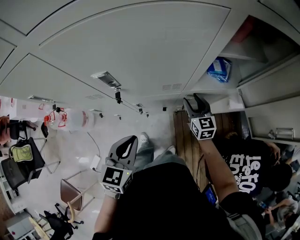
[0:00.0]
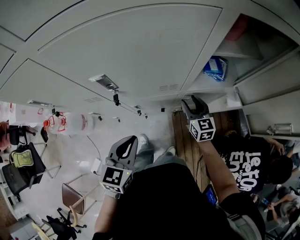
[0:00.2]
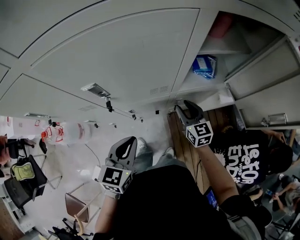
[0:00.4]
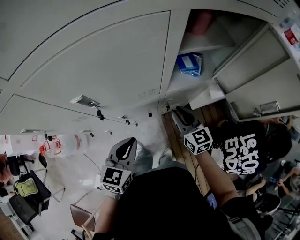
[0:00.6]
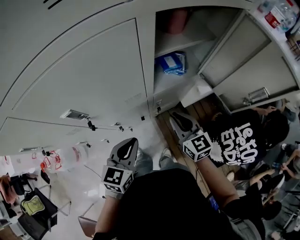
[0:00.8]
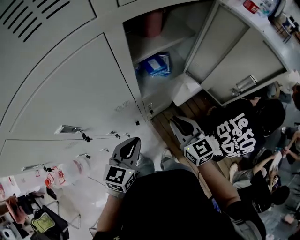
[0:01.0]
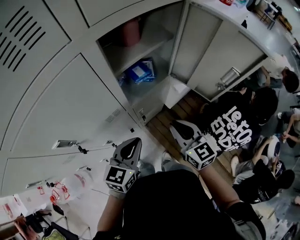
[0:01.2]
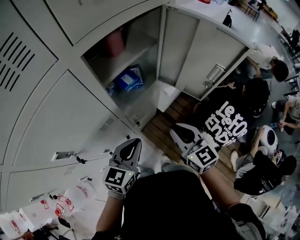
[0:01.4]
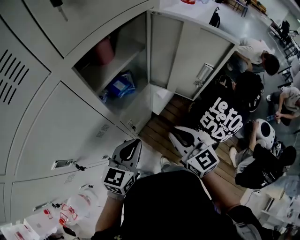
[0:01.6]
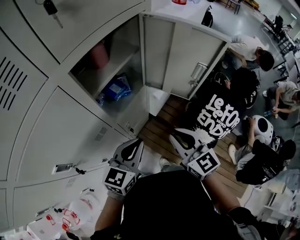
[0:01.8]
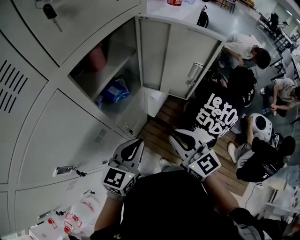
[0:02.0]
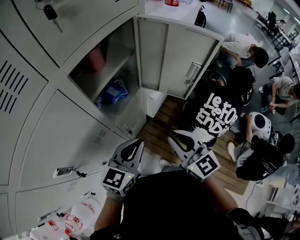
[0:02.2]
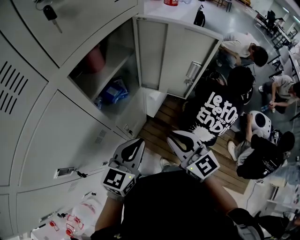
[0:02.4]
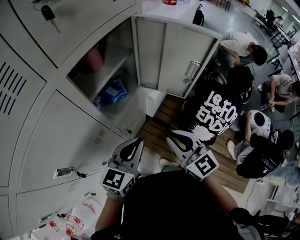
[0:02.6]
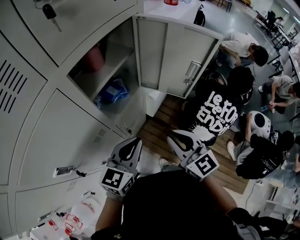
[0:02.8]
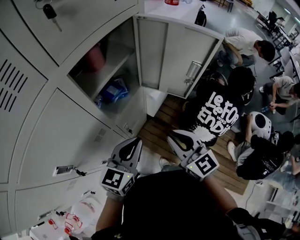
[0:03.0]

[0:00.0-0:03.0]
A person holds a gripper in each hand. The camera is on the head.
0:00.0 to 0:01.6: The right gripper moves about 30 cm, changes its angle by roughly 30 degrees, and closes. Meanwhile the left gripper ends up about 20 cm from where it was, and rotates roughly 50 degrees.
0:01.6 to 0:03.0: The grippers move only a little.

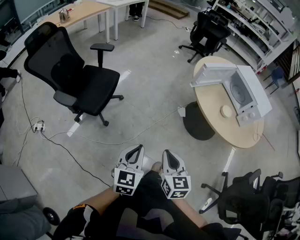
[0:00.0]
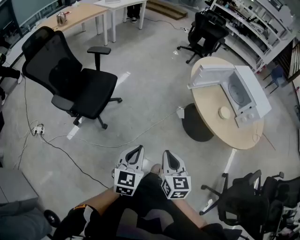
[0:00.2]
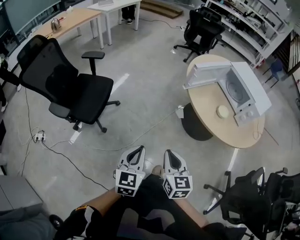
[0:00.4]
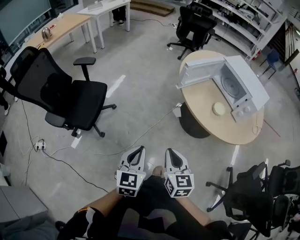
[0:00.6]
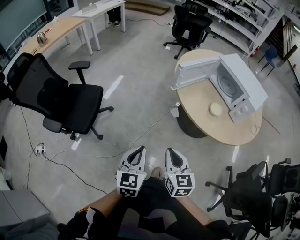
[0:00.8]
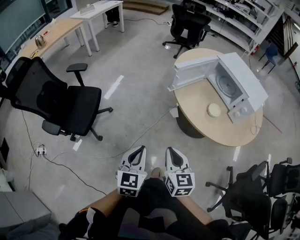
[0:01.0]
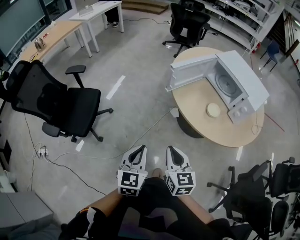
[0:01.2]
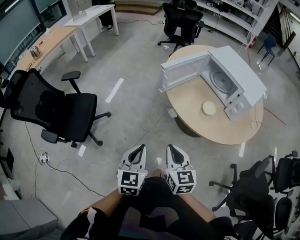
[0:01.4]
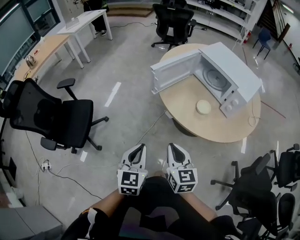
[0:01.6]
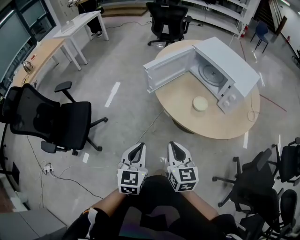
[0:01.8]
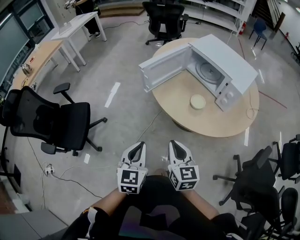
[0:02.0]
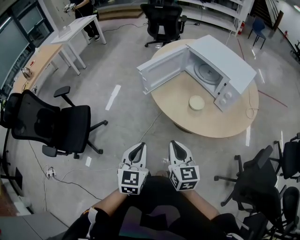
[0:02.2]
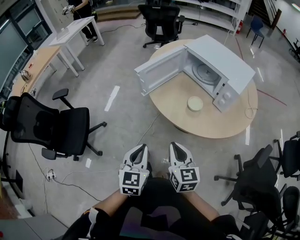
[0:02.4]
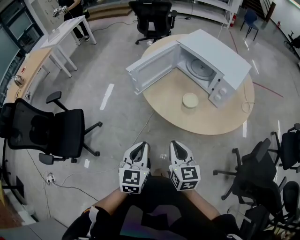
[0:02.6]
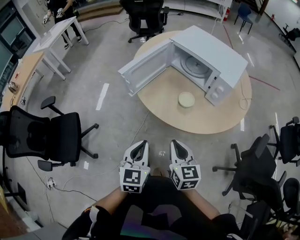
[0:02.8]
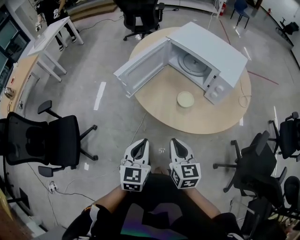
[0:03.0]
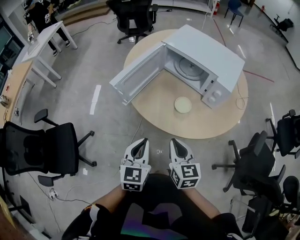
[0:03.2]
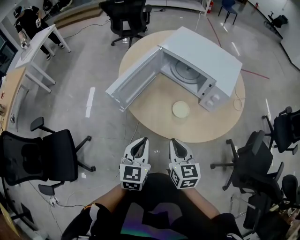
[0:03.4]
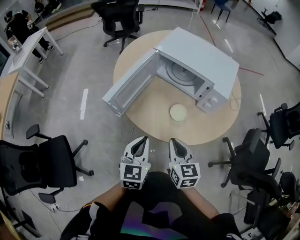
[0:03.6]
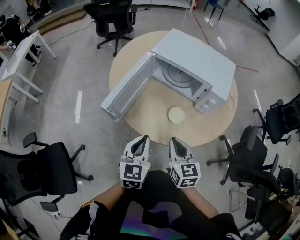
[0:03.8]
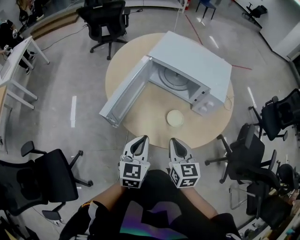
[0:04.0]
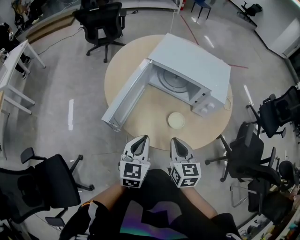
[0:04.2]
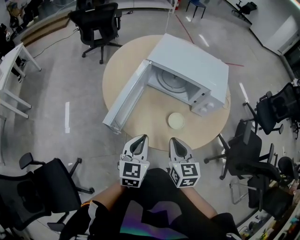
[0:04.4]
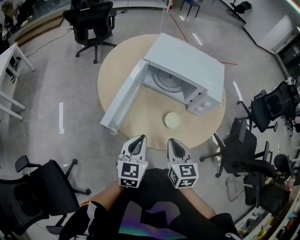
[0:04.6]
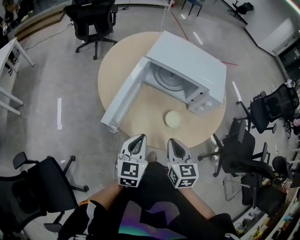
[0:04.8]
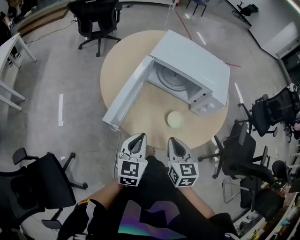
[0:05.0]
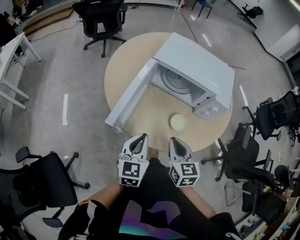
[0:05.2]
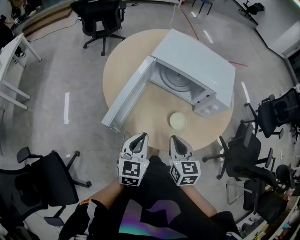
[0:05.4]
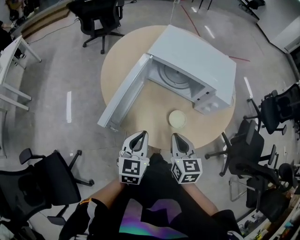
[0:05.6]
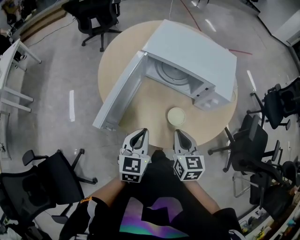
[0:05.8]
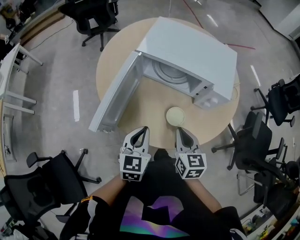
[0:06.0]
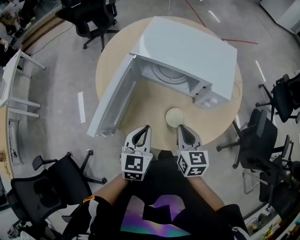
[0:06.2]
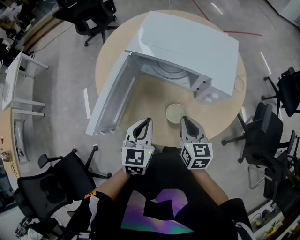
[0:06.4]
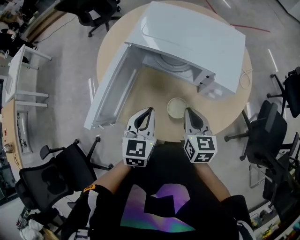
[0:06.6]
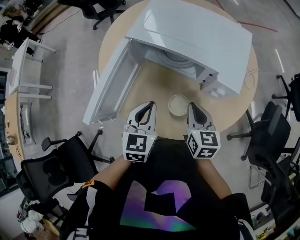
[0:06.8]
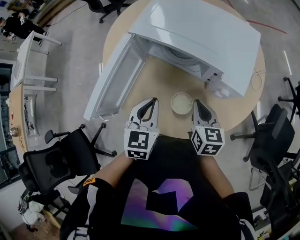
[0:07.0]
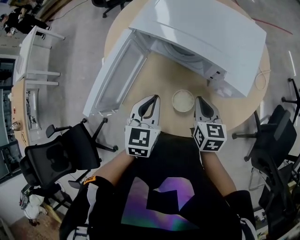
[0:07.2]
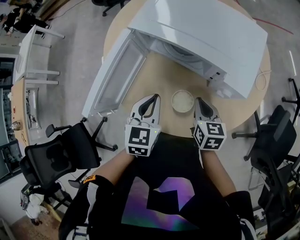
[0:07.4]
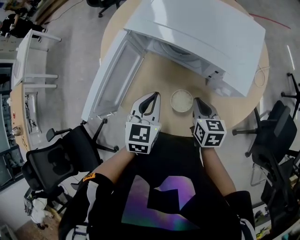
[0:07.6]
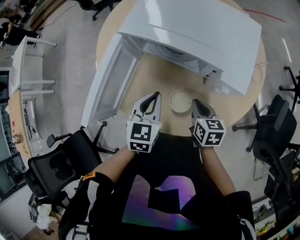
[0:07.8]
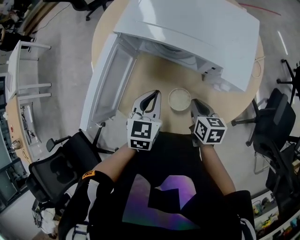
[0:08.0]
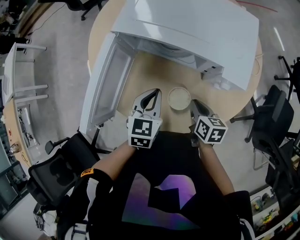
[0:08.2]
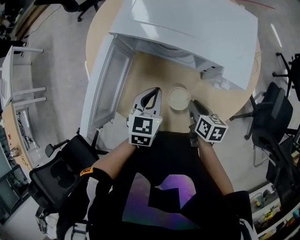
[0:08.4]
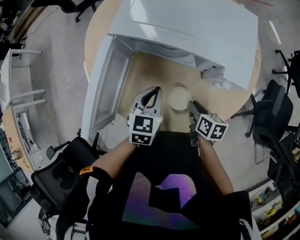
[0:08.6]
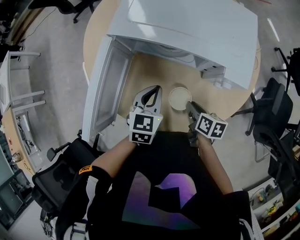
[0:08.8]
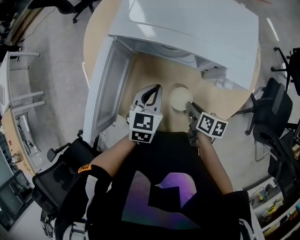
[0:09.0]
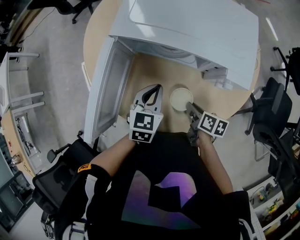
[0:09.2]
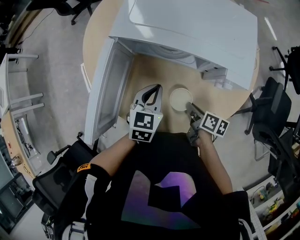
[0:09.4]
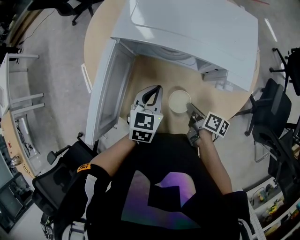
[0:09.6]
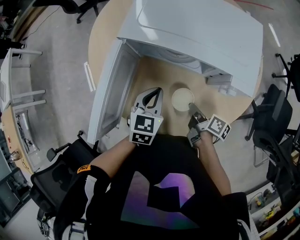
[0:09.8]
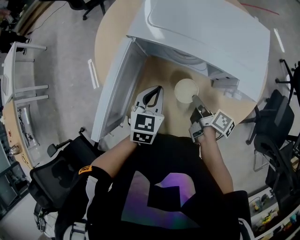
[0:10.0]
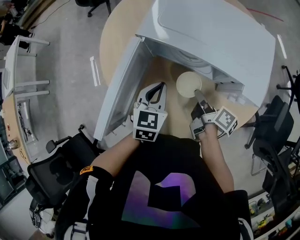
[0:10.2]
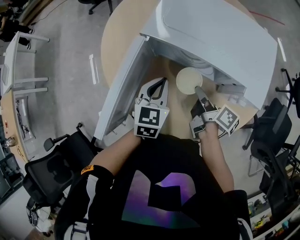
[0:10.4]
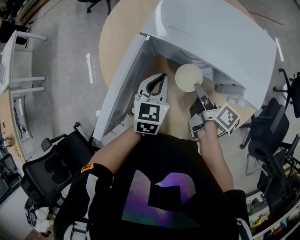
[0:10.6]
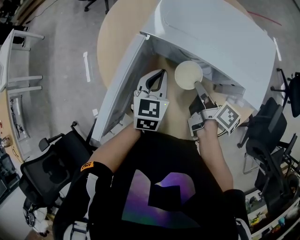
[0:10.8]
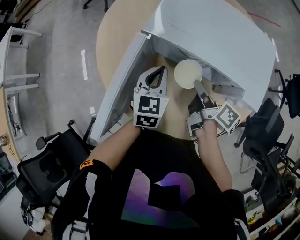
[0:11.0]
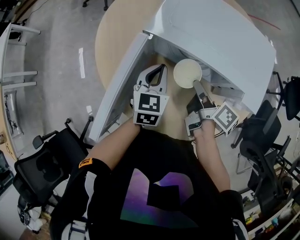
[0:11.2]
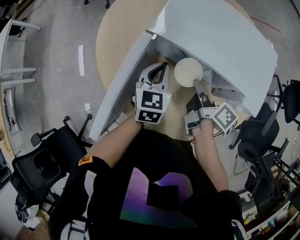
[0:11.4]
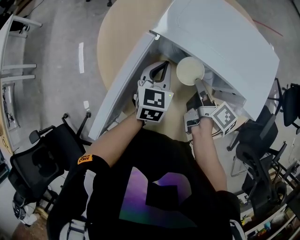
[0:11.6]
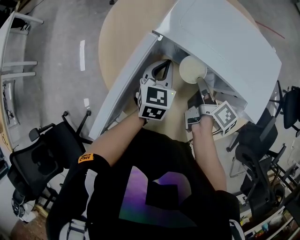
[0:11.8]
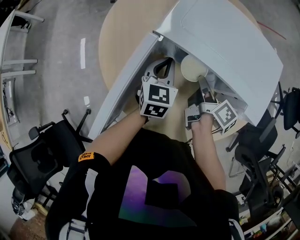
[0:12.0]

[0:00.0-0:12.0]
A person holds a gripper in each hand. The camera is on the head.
0:00.0 to 0:01.6: Both grippers travel together to the right and forward, roughly 30 cm.
0:01.6 to 0:03.0: Both grippers travel together to the right and forward, roughly 15 cm.
0:03.0 to 0:04.4: Both grippers travel together forward, roughly 15 cm. The right gripper changes its angle by some 20 degrees; the left gripper turns by about 20 degrees.
0:04.4 to 0:06.0: The right gripper shifts about 10 cm forward and to the right, while the left gripper heads forward, covering about 5 cm.
0:06.0 to 0:07.6: The right gripper shifts some 15 cm downward, forward and to the right. The left gripper moves forward and to the right, some 10 cm.
0:07.6 to 0:09.0: The right gripper heads downward, covering some 5 cm, and changes its angle by some 40 degrees; the left gripper shifts by about 5 cm.
0:09.0 to 0:10.4: The left gripper changes place by approximately 5 cm, while the right gripper moves forward and upward, approximately 15 cm, and rotates some 30 degrees.
0:10.4 to 0:12.0: The grippers both shift forward by approximately 10 cm.

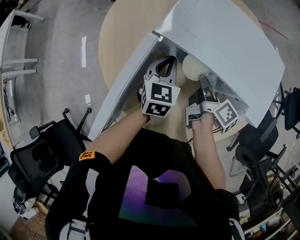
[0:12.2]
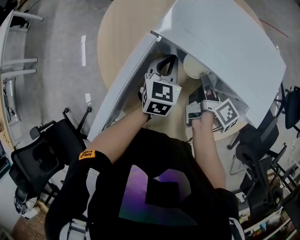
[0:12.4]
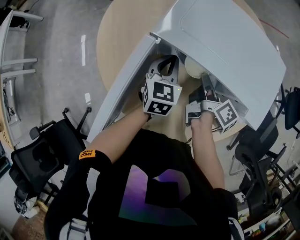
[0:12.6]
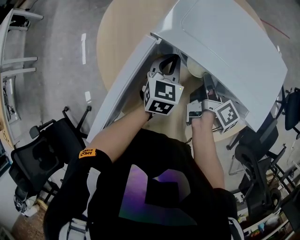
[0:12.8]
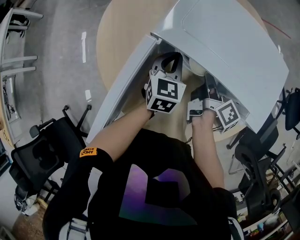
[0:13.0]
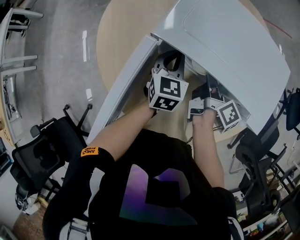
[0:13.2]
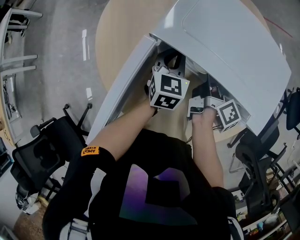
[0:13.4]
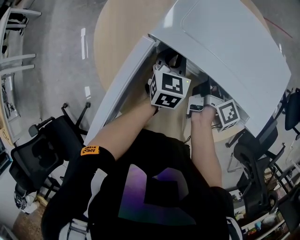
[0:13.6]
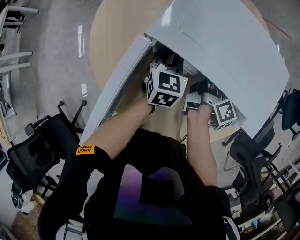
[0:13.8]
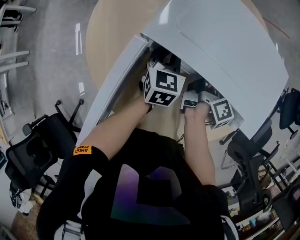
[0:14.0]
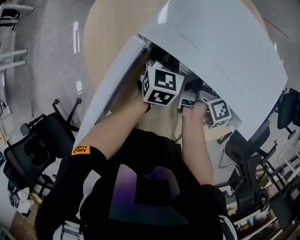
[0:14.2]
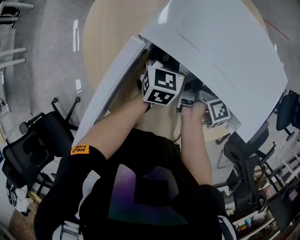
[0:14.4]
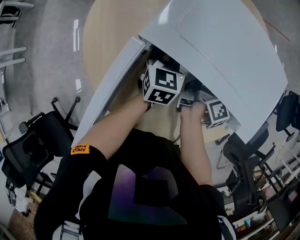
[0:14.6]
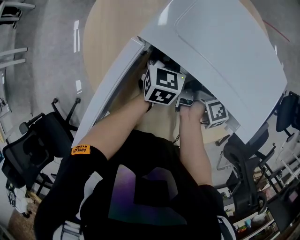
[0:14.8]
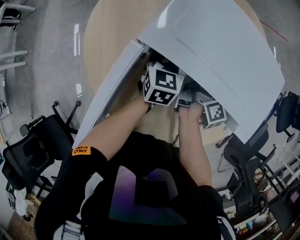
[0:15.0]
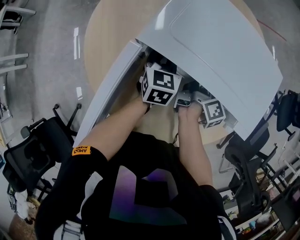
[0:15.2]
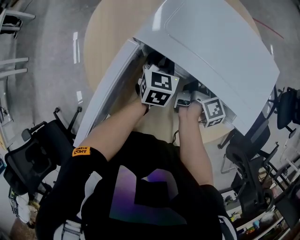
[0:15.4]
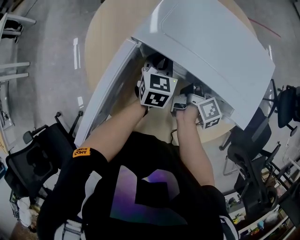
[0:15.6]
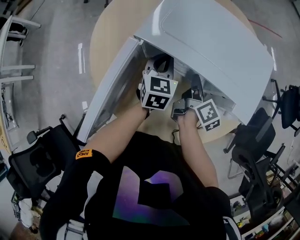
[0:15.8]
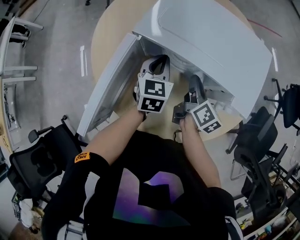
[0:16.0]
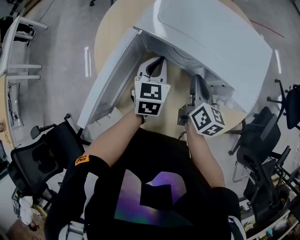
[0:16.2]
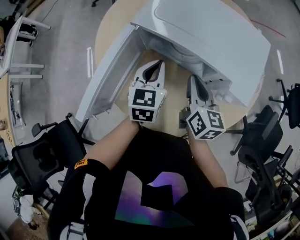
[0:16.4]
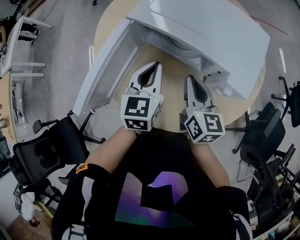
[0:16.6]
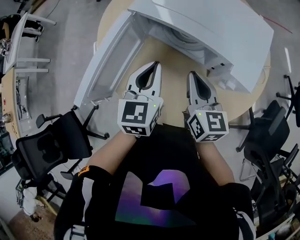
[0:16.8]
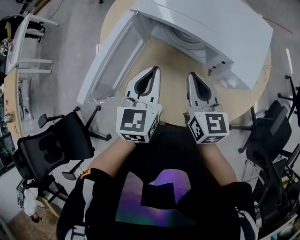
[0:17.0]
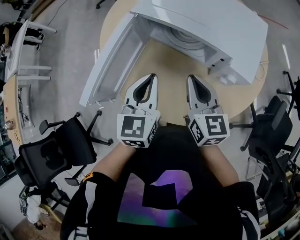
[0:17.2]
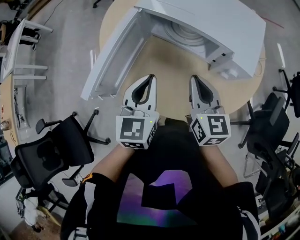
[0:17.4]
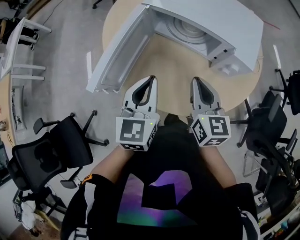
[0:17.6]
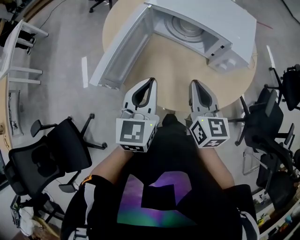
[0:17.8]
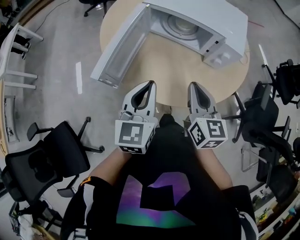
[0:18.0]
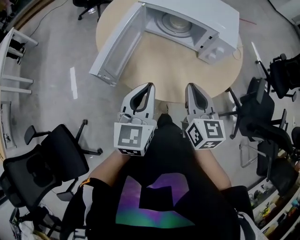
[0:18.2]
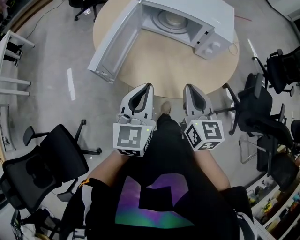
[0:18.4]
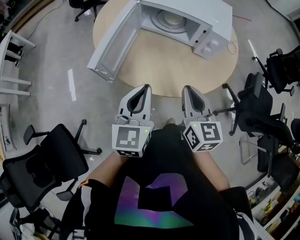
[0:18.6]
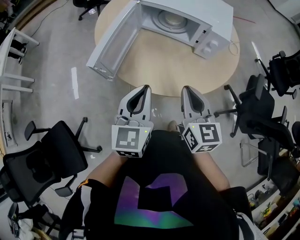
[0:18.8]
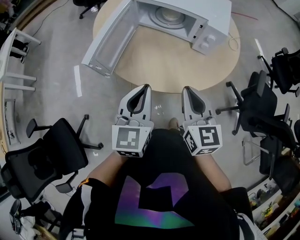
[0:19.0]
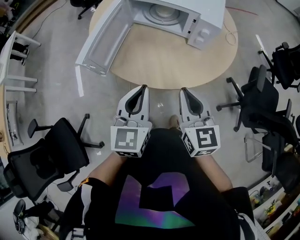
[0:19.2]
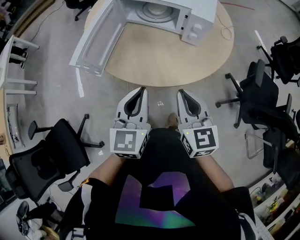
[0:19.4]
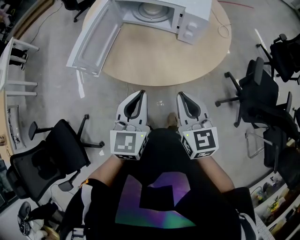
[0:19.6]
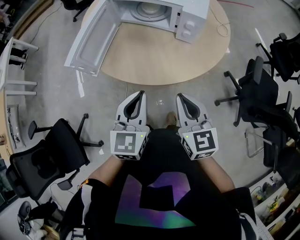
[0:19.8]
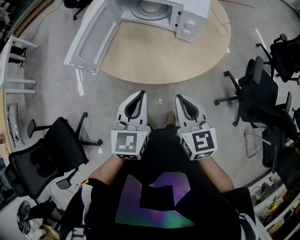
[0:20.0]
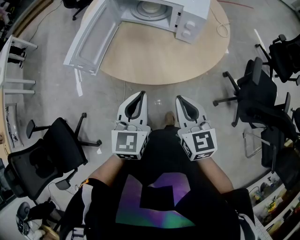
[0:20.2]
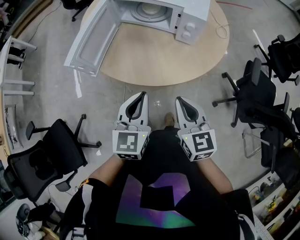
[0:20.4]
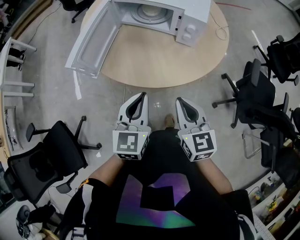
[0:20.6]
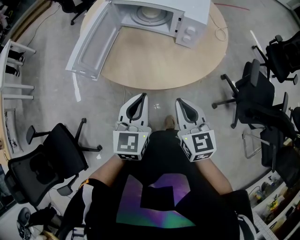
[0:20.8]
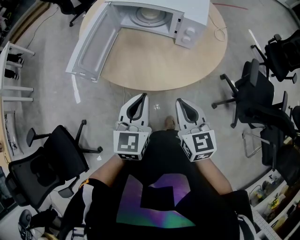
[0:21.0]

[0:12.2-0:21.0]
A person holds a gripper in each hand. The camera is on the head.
0:12.2 to 0:13.6: The left gripper heads forward, covering approximately 5 cm; the right gripper shifts by roughly 5 cm.
0:13.6 to 0:15.2: The grippers move only a little.
0:15.2 to 0:16.6: Both grippers travel together backward and upward, approximately 20 cm. The right gripper rotates around the line of its fingers by some 60 degrees, counterclockwise from behind.
0:16.6 to 0:18.0: Both grippers travel together backward, about 20 cm.
0:18.0 to 0:19.6: The grippers both shift backward and to the right by roughly 15 cm.
0:19.6 to 0:21.0: There are only small adjustments of the grippers.
